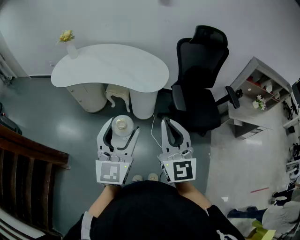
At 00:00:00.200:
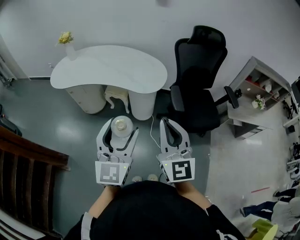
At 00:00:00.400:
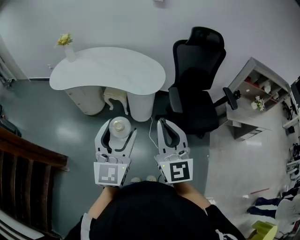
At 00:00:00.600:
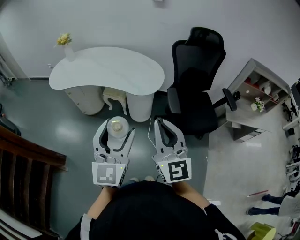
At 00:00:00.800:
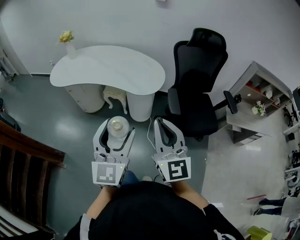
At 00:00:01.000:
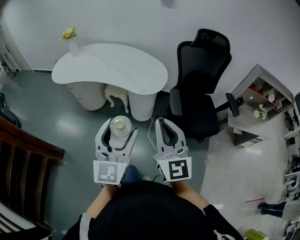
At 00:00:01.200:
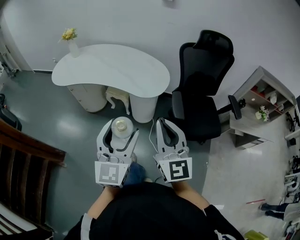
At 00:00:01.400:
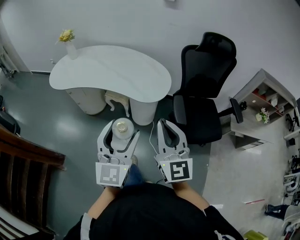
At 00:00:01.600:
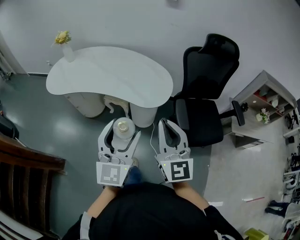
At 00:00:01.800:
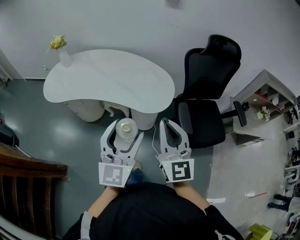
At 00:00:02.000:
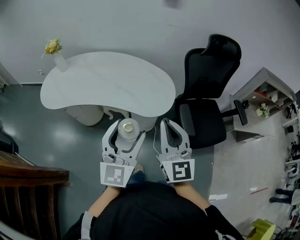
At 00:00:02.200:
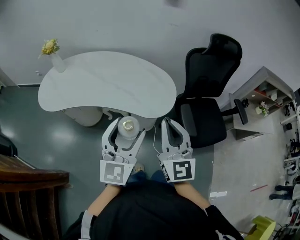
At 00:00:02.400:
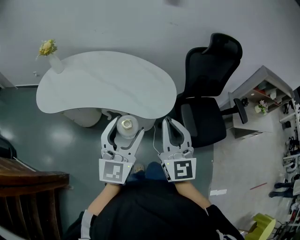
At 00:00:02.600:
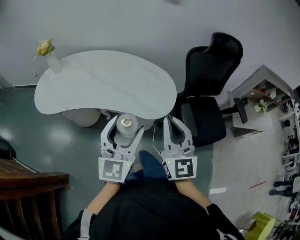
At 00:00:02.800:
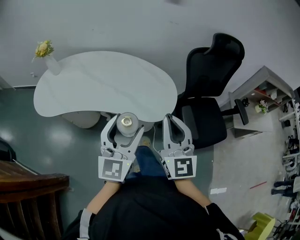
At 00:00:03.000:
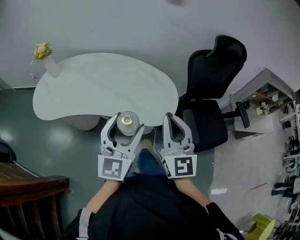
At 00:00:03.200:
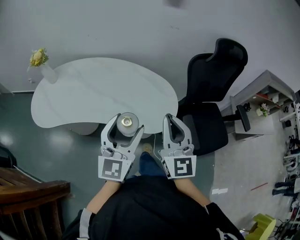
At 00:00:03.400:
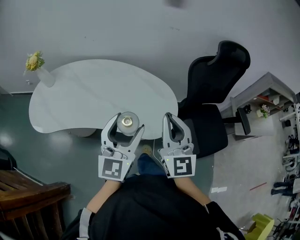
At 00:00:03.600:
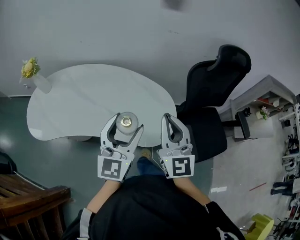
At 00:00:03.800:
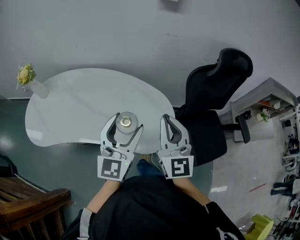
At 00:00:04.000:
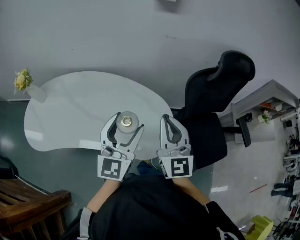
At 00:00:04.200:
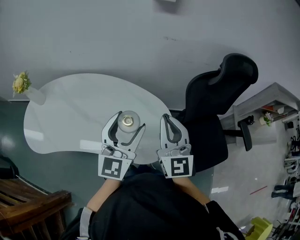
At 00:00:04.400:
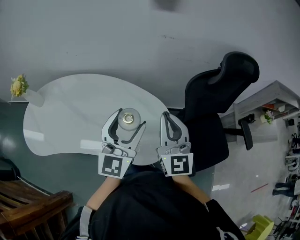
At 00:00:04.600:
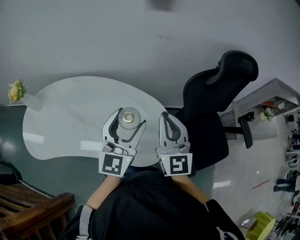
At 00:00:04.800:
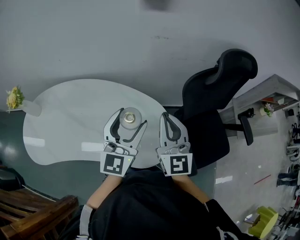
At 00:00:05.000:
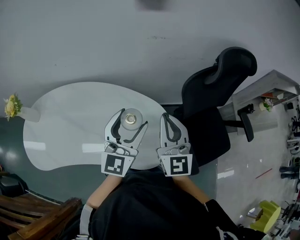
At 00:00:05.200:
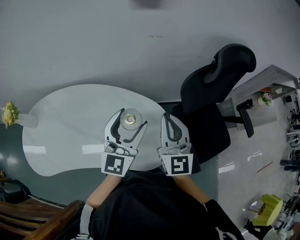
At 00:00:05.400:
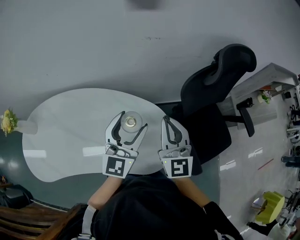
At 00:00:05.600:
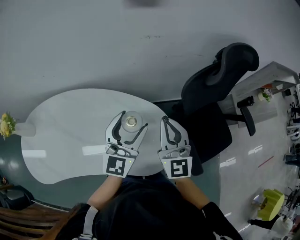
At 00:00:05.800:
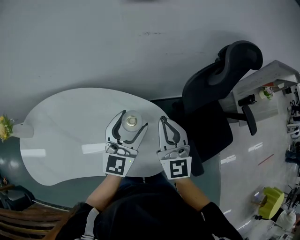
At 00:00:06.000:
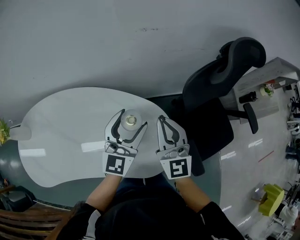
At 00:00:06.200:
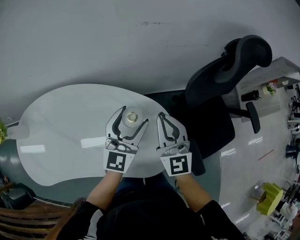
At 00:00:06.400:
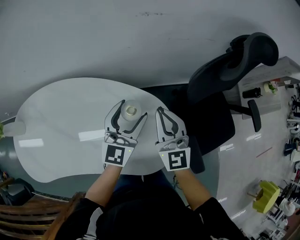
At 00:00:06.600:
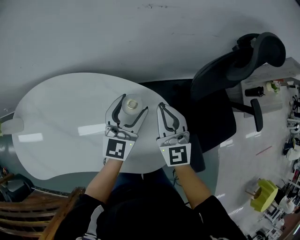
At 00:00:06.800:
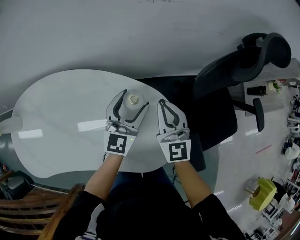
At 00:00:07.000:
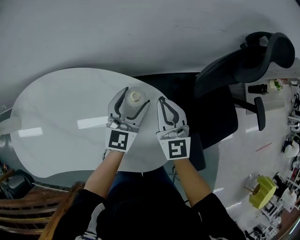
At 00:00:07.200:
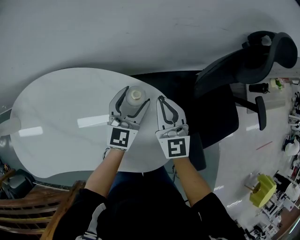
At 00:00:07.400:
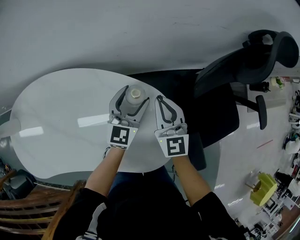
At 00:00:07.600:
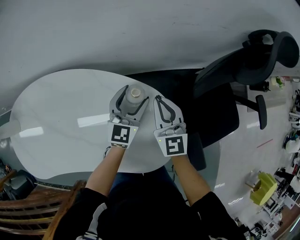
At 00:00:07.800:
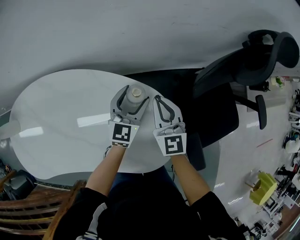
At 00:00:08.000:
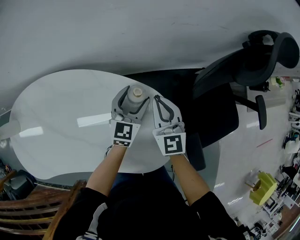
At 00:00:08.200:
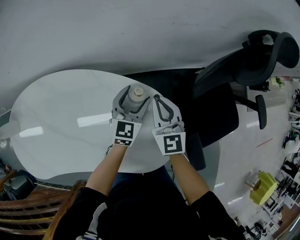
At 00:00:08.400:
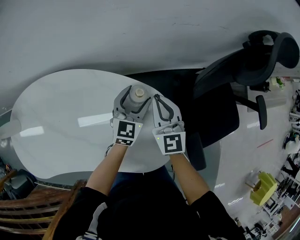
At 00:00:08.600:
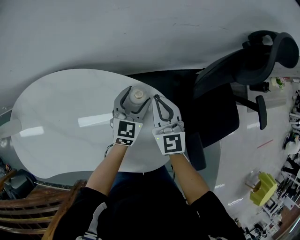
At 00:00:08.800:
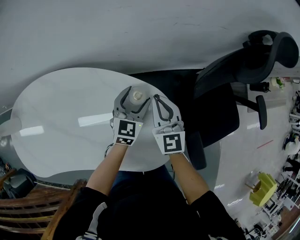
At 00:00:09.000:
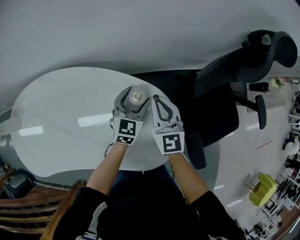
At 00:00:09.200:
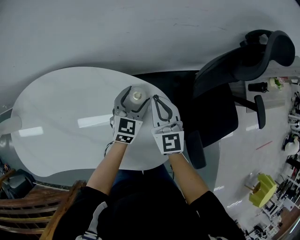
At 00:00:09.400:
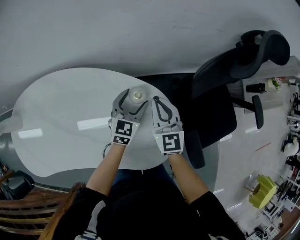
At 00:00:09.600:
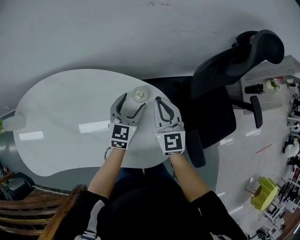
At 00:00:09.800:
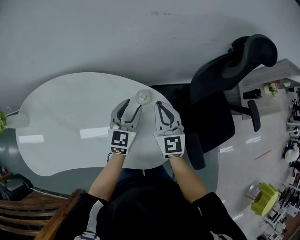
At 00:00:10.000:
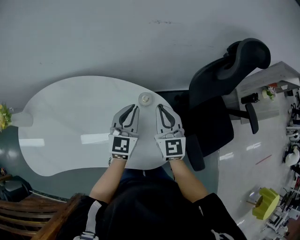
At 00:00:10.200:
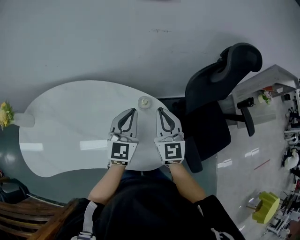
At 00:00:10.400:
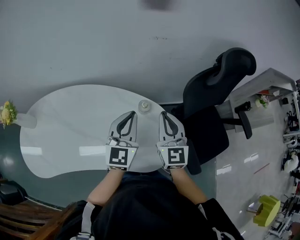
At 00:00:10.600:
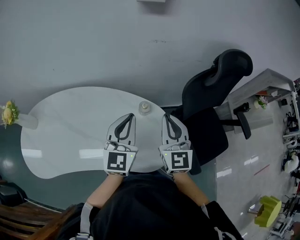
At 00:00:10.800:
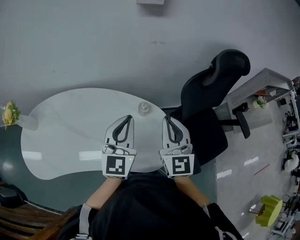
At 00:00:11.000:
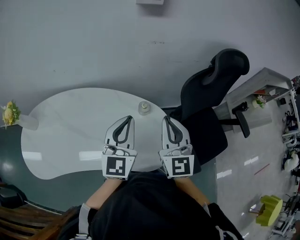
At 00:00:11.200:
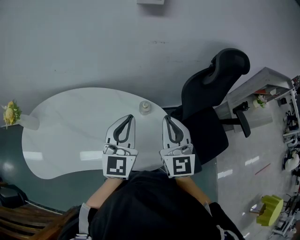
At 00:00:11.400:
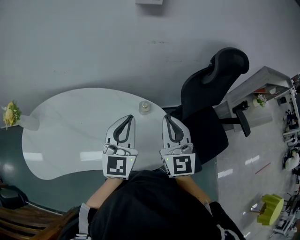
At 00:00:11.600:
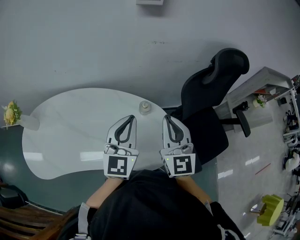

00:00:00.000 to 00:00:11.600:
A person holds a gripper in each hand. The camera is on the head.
00:00:00.000 to 00:00:01.400: The two grippers go some 10 cm forward.
00:00:01.400 to 00:00:02.800: The right gripper shifts some 20 cm forward and to the left, while the left gripper goes approximately 20 cm forward.
00:00:02.800 to 00:00:04.400: The two grippers go some 30 cm forward.
00:00:04.400 to 00:00:05.800: Both grippers travel together forward and downward, roughly 10 cm.
00:00:05.800 to 00:00:07.200: Both grippers move downward and forward, approximately 20 cm.
00:00:07.200 to 00:00:08.800: The left gripper moves downward, approximately 5 cm.
00:00:08.800 to 00:00:10.200: Both grippers travel together upward and backward, some 20 cm. The left gripper closes up.
00:00:10.200 to 00:00:11.600: Both grippers travel together upward and backward, roughly 10 cm.

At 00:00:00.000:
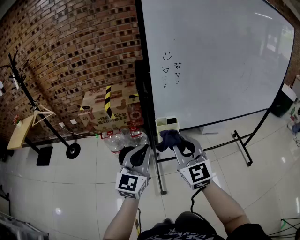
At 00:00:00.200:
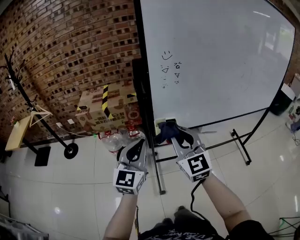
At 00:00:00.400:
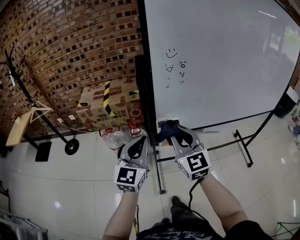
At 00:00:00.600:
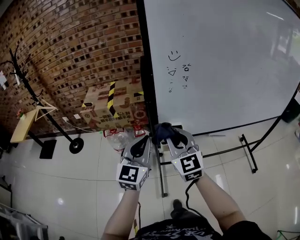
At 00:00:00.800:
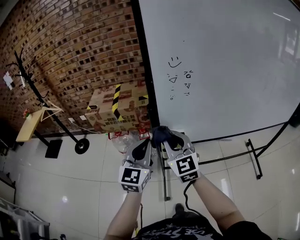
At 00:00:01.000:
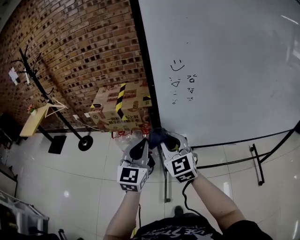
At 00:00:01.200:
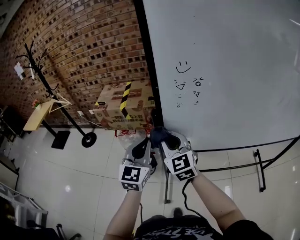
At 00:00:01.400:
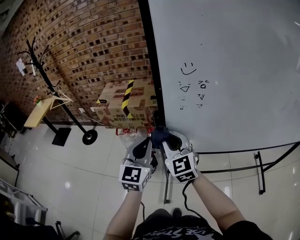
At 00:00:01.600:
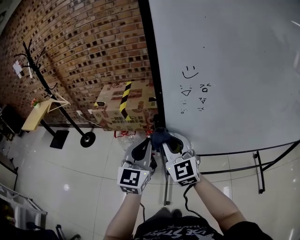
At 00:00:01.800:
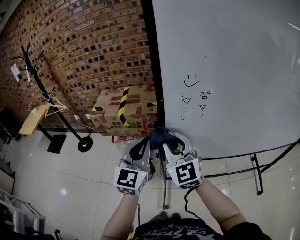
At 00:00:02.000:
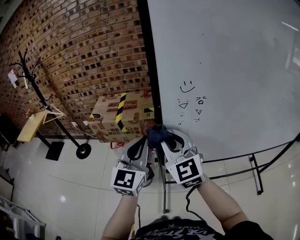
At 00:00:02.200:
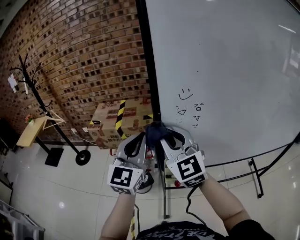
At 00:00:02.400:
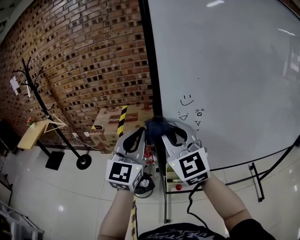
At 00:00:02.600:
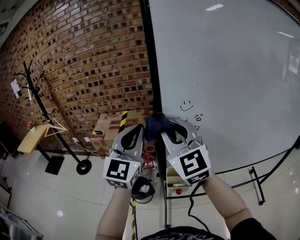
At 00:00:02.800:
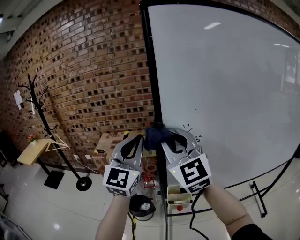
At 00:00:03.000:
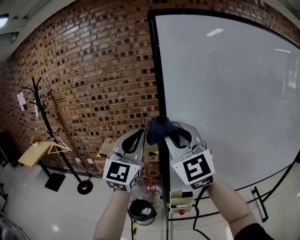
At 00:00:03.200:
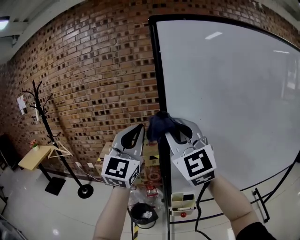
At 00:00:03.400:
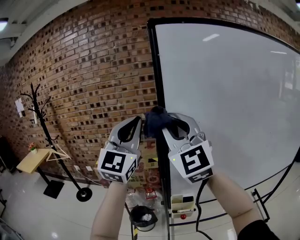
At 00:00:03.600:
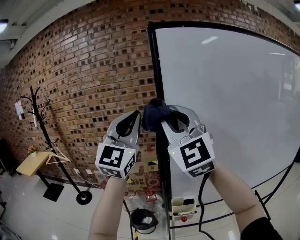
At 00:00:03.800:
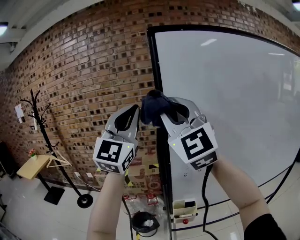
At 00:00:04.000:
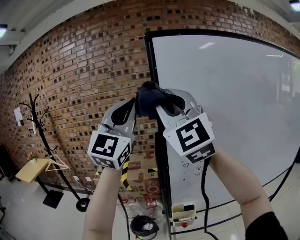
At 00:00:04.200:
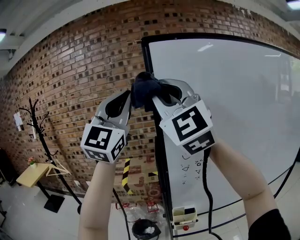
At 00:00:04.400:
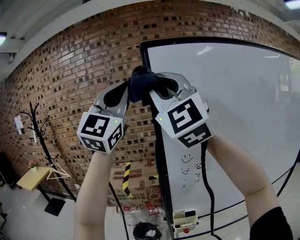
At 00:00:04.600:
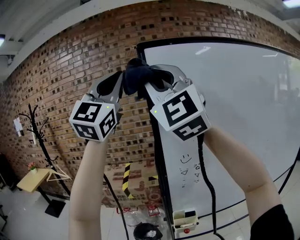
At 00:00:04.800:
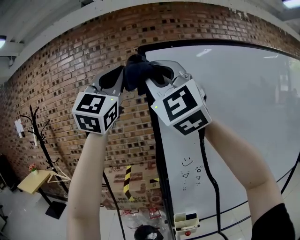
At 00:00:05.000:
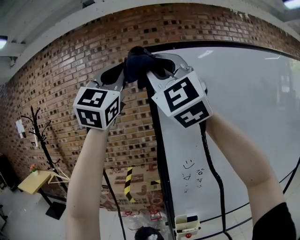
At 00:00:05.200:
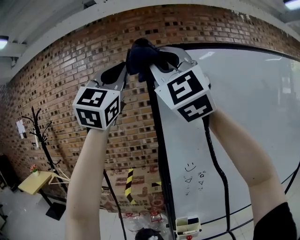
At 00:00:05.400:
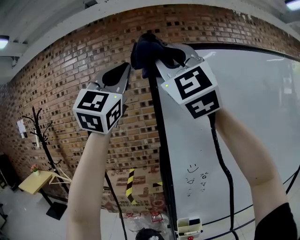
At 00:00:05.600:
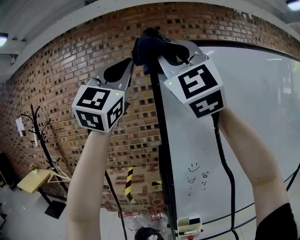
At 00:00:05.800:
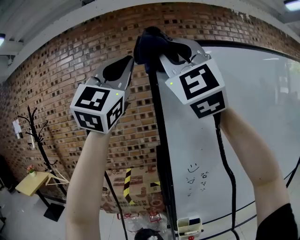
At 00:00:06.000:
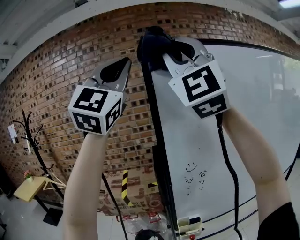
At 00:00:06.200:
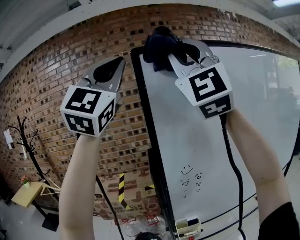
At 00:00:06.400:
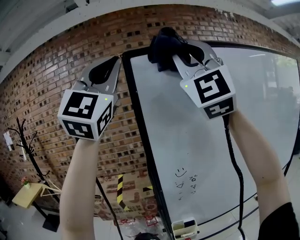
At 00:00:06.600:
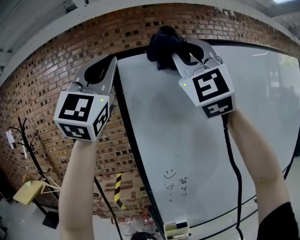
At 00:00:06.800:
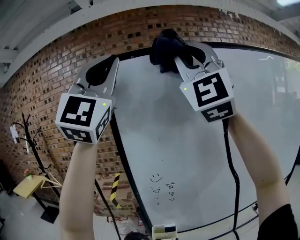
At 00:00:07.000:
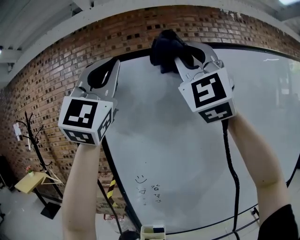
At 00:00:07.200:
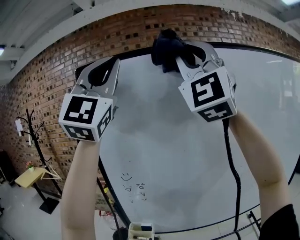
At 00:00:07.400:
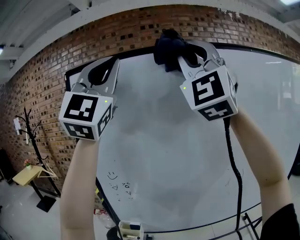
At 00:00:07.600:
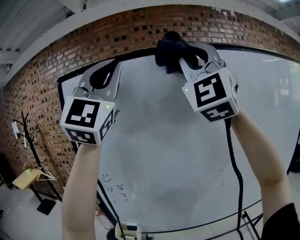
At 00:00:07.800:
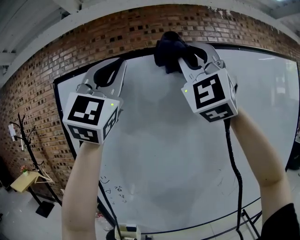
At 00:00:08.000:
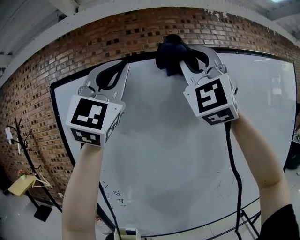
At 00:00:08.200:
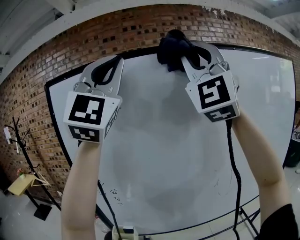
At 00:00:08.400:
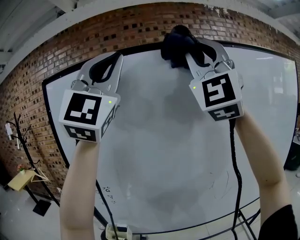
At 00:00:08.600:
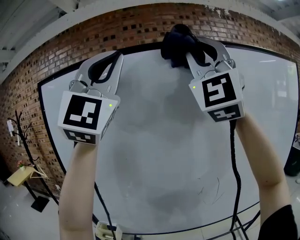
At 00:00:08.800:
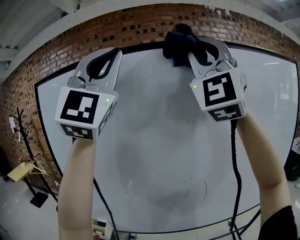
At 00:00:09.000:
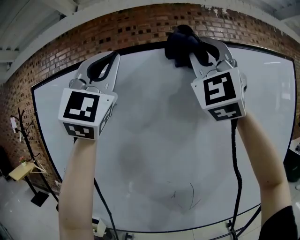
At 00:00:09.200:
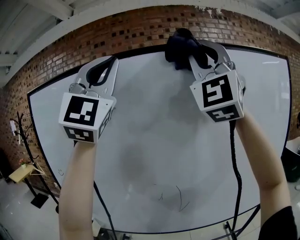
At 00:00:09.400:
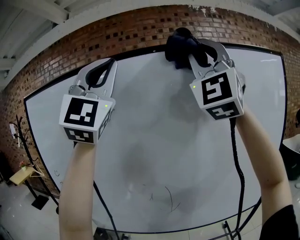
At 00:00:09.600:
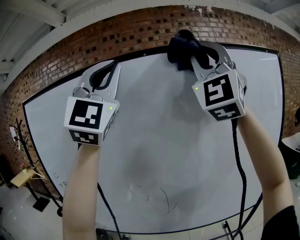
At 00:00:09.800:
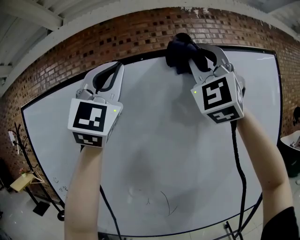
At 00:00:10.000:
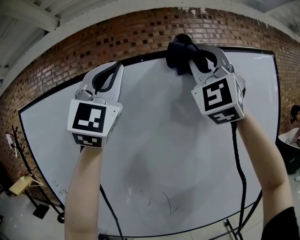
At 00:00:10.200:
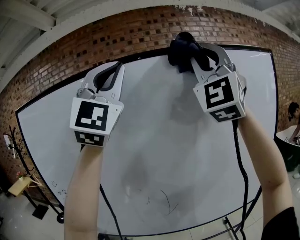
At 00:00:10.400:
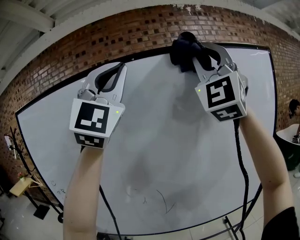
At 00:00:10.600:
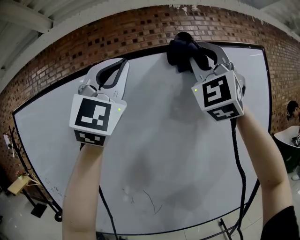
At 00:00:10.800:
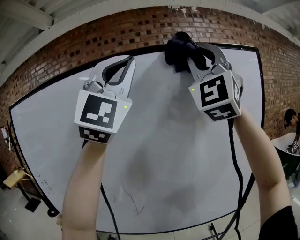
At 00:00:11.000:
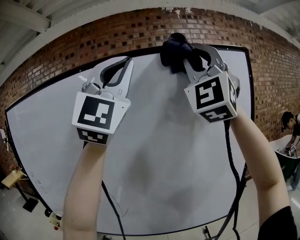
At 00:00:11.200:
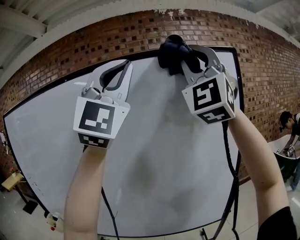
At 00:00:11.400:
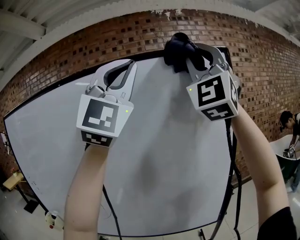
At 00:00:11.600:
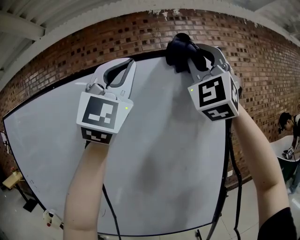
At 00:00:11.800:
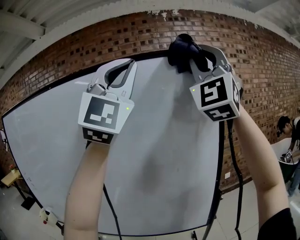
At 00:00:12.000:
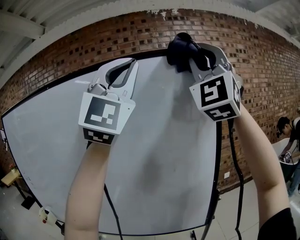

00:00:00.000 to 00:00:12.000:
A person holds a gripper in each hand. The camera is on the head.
00:00:00.000 to 00:00:01.600: The two grippers go about 20 cm forward.
00:00:01.600 to 00:00:03.000: The two grippers go approximately 25 cm upward. The right gripper changes its angle by some 20 degrees. The left gripper rotates some 30 degrees.
00:00:03.000 to 00:00:04.400: The two grippers go about 25 cm upward. The left gripper turns by about 20 degrees. The right gripper swivels approximately 20 degrees.
00:00:04.400 to 00:00:06.000: The right gripper goes approximately 10 cm upward and to the right; the left gripper travels upward by approximately 5 cm.
00:00:06.000 to 00:00:07.600: The two grippers go about 30 cm to the right.
00:00:07.600 to 00:00:09.000: The two grippers go about 20 cm to the right.
00:00:09.000 to 00:00:10.400: Both grippers travel together to the right, about 15 cm.
00:00:10.400 to 00:00:12.000: Both grippers move to the right, roughly 30 cm.
